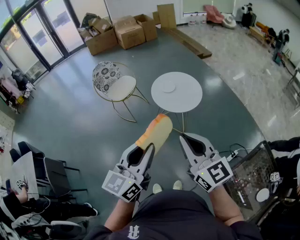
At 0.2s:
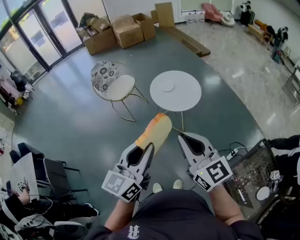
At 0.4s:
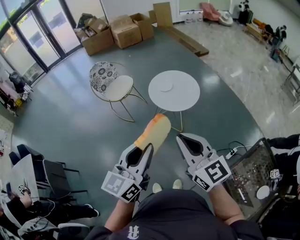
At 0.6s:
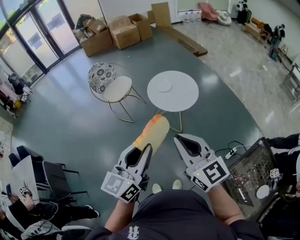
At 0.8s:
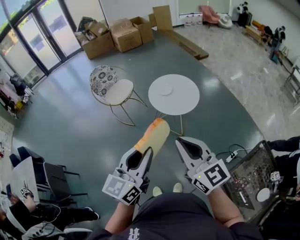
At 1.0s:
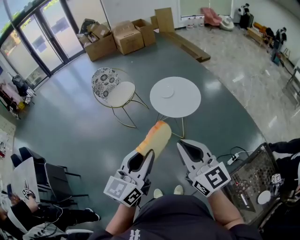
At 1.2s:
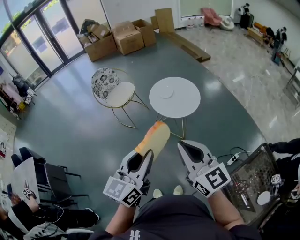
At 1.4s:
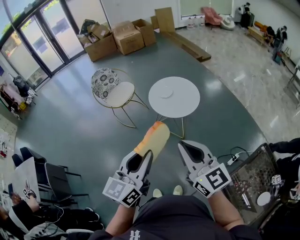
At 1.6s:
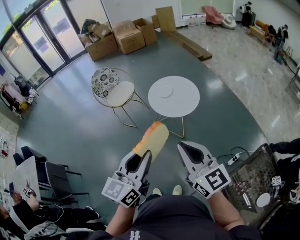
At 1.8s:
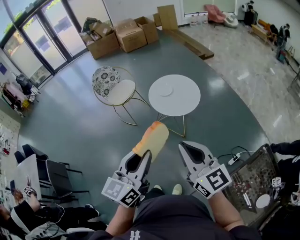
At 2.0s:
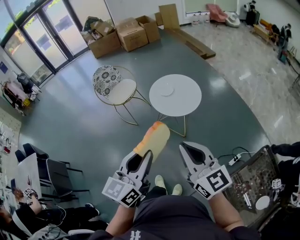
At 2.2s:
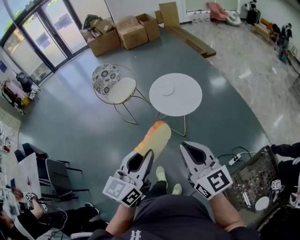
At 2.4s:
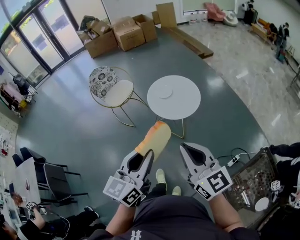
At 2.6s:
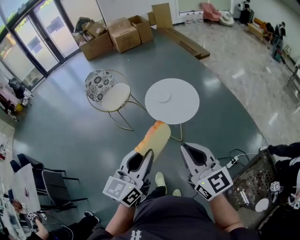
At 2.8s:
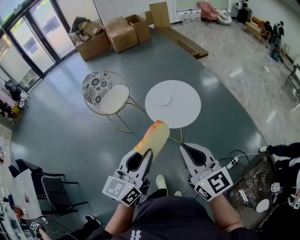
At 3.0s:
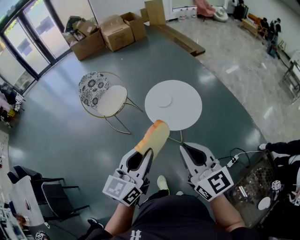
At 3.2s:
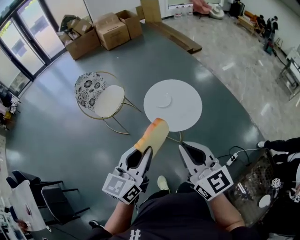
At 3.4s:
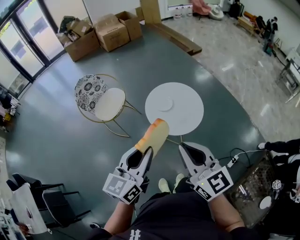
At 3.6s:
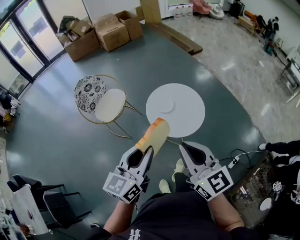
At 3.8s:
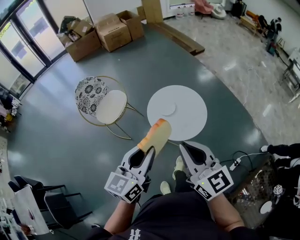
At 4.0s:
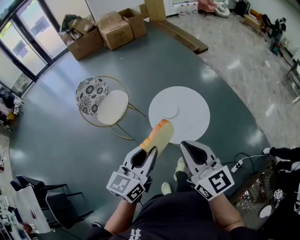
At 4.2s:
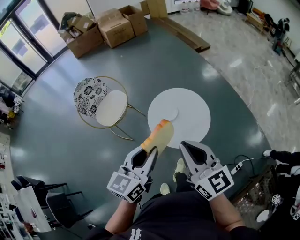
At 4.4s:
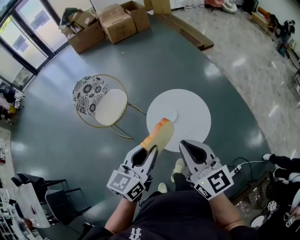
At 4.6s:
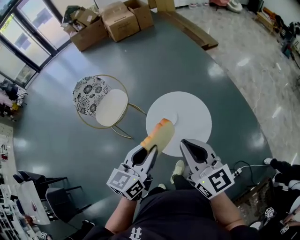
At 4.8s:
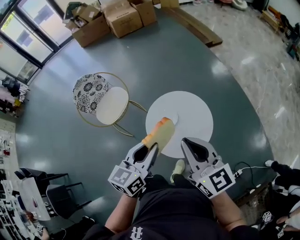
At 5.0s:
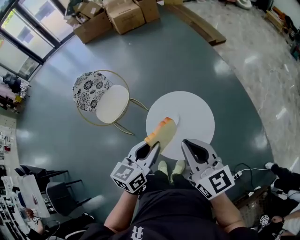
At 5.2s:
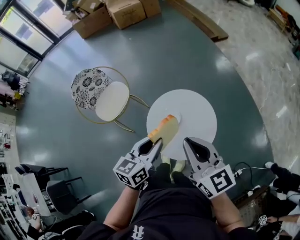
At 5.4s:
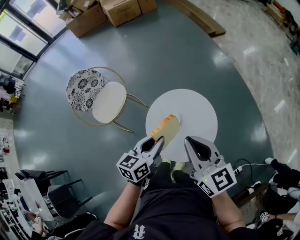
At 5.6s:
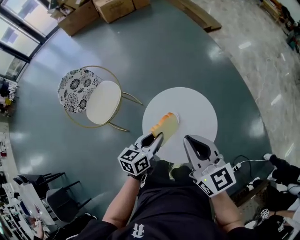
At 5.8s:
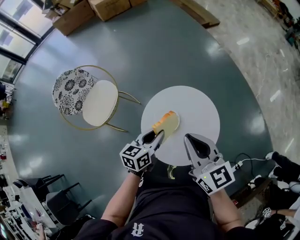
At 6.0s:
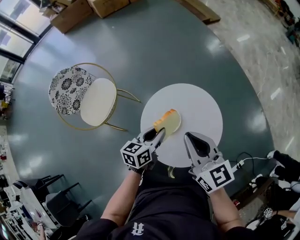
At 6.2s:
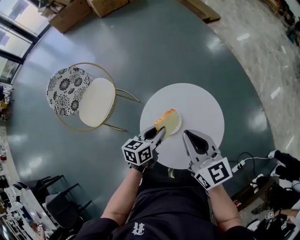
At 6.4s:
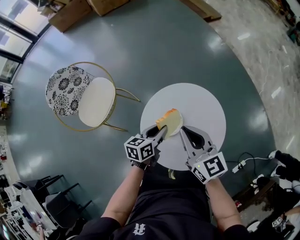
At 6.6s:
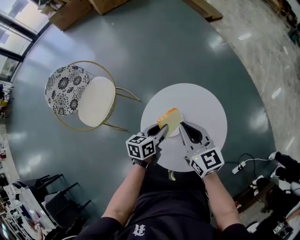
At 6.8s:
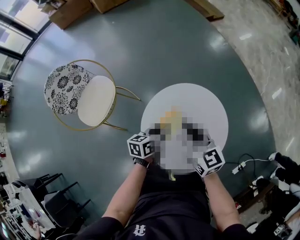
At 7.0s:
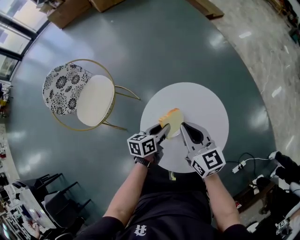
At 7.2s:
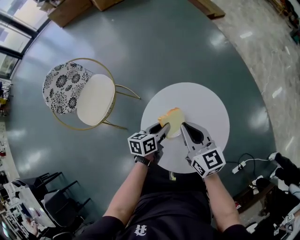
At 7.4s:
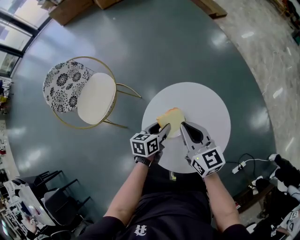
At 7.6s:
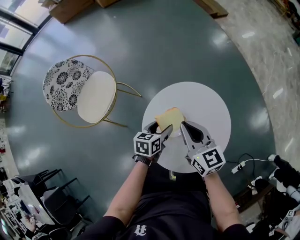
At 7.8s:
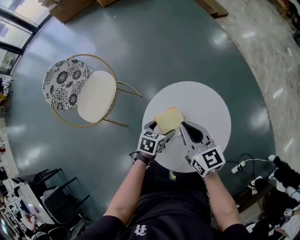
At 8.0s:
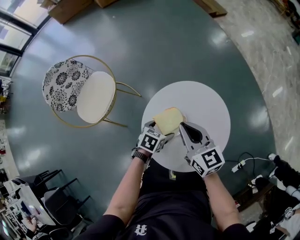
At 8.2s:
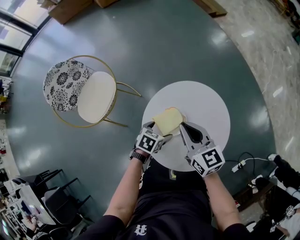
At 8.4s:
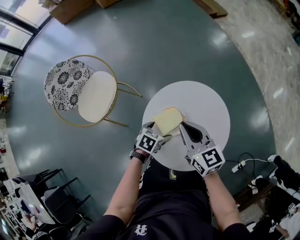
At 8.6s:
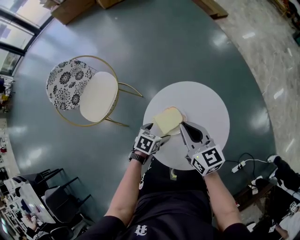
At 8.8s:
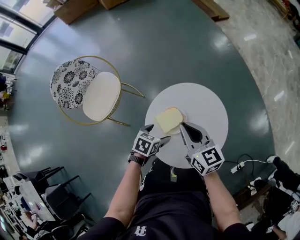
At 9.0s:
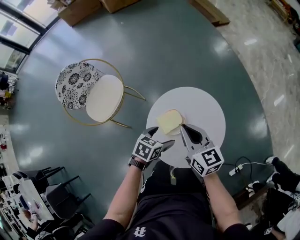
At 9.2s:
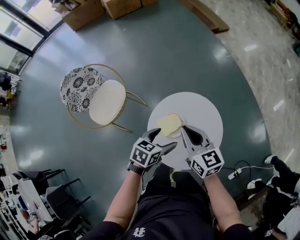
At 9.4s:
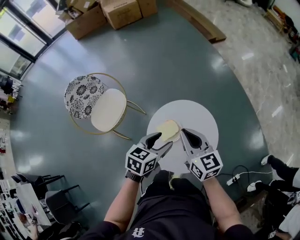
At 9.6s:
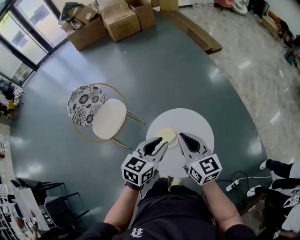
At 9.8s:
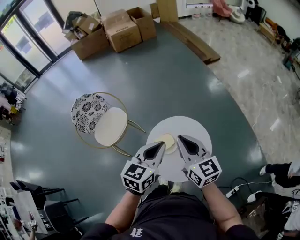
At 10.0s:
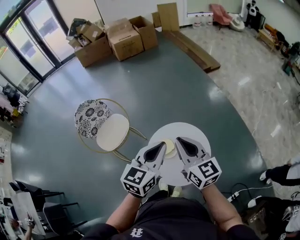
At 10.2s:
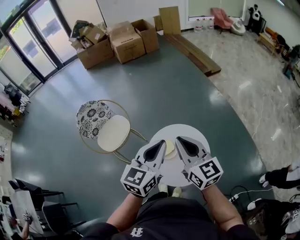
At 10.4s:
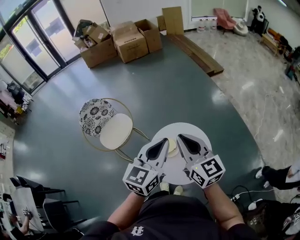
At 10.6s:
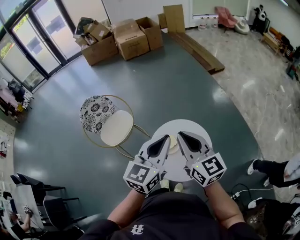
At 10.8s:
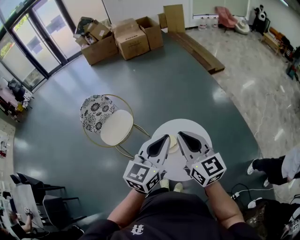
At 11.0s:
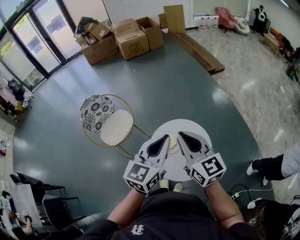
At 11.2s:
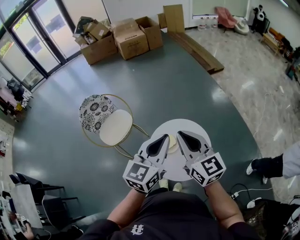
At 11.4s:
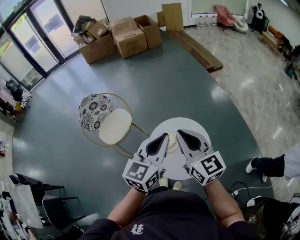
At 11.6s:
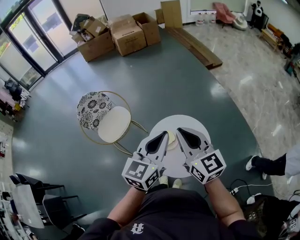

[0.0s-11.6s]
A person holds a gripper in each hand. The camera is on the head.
0.0s to 1.4s: The grippers stay close to where they were, moving slightly.
1.4s to 2.8s: Both grippers travel together forward, some 15 cm.
2.8s to 4.4s: Both grippers travel together forward, some 25 cm.
4.4s to 5.8s: The left gripper moves downward and forward, approximately 35 cm, and swivels roughly 20 degrees; the right gripper moves forward and downward, approximately 25 cm.
5.8s to 7.2s: The left gripper goes some 15 cm downward, while the right gripper goes approximately 20 cm downward and forward.
7.2s to 8.8s: The left gripper shifts about 5 cm backward, swivels roughly 40 degrees, and opens up.
8.8s to 10.2s: The left gripper moves upward, roughly 50 cm, tilts its fingers approximately 50 degrees upward, and closes up; the right gripper moves upward, approximately 30 cm.
10.2s to 11.6s: The grippers move only a little.

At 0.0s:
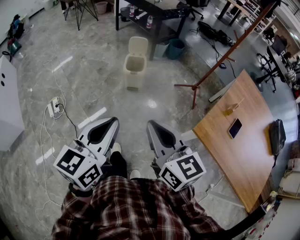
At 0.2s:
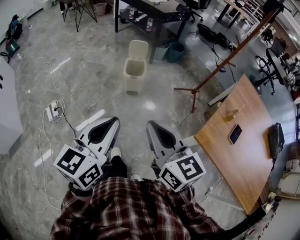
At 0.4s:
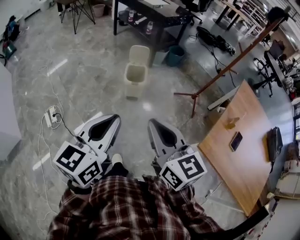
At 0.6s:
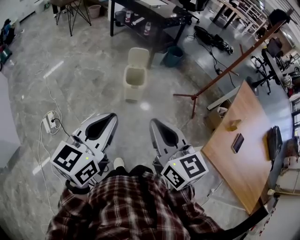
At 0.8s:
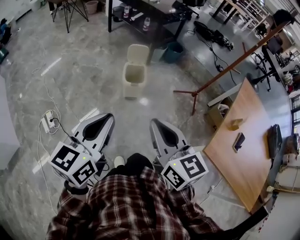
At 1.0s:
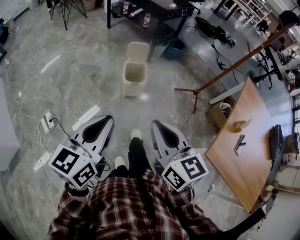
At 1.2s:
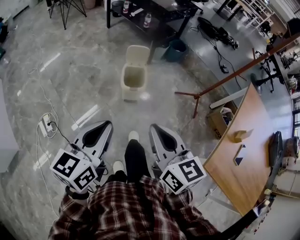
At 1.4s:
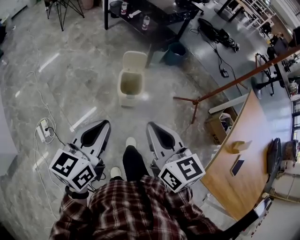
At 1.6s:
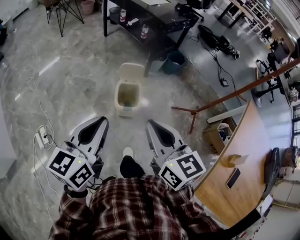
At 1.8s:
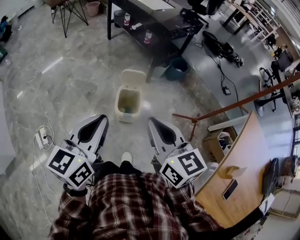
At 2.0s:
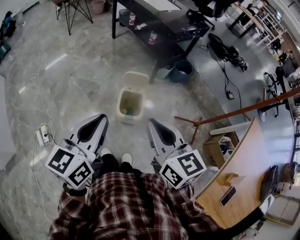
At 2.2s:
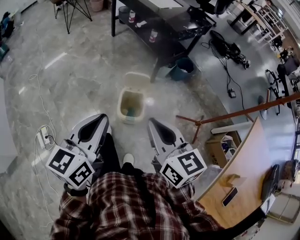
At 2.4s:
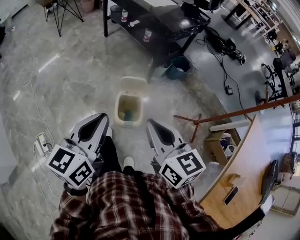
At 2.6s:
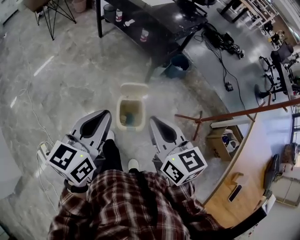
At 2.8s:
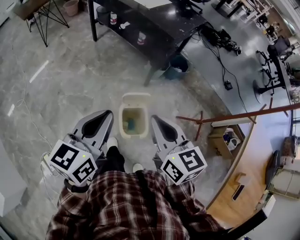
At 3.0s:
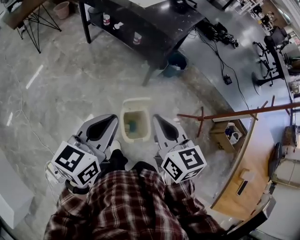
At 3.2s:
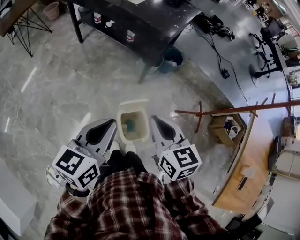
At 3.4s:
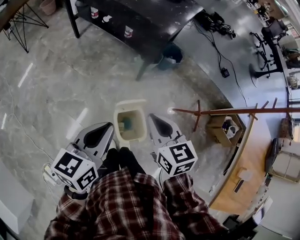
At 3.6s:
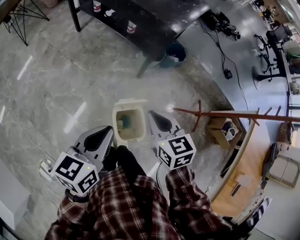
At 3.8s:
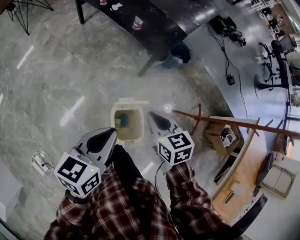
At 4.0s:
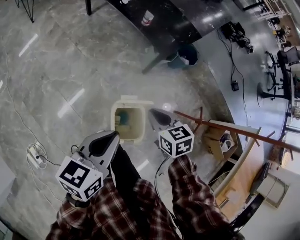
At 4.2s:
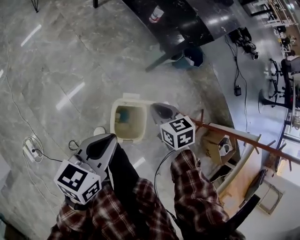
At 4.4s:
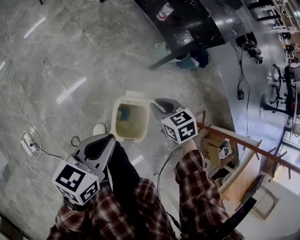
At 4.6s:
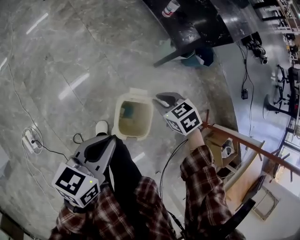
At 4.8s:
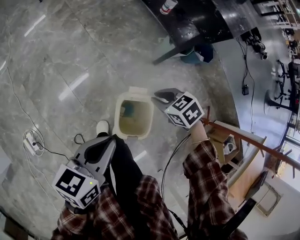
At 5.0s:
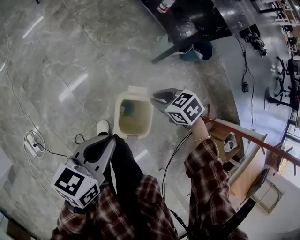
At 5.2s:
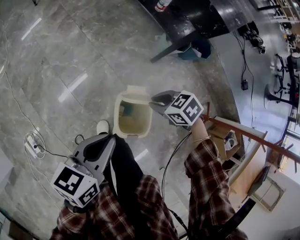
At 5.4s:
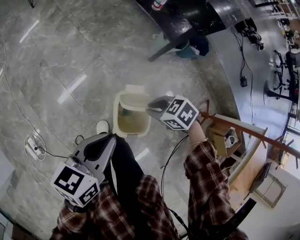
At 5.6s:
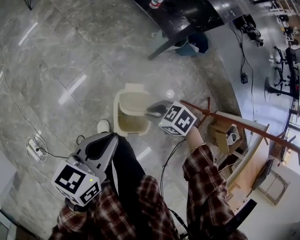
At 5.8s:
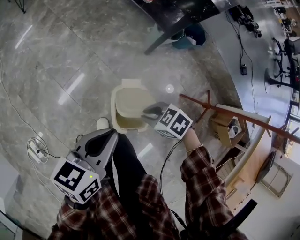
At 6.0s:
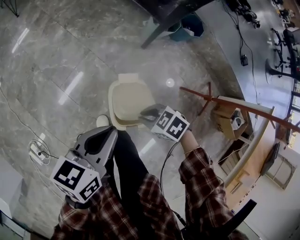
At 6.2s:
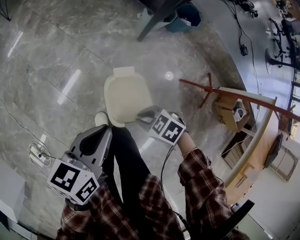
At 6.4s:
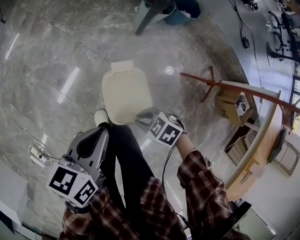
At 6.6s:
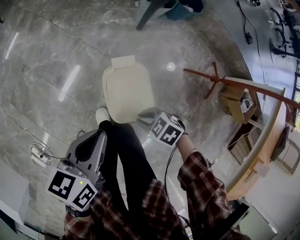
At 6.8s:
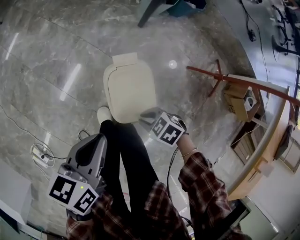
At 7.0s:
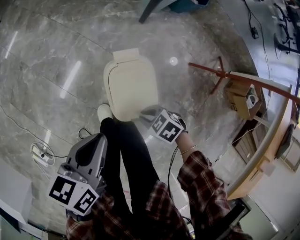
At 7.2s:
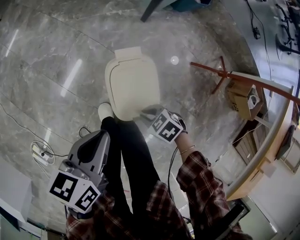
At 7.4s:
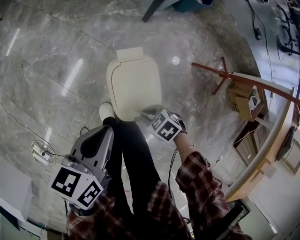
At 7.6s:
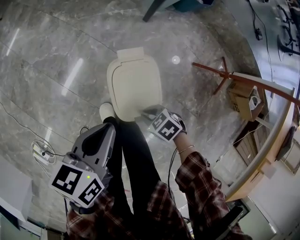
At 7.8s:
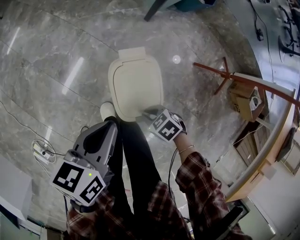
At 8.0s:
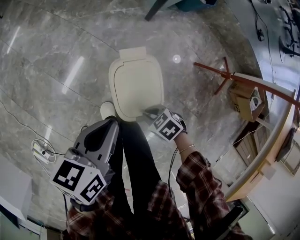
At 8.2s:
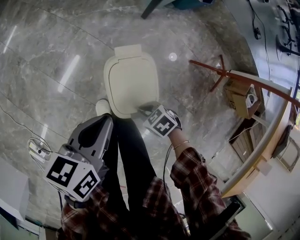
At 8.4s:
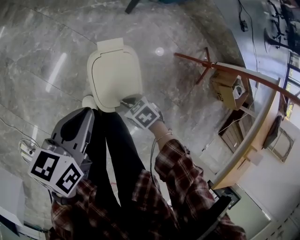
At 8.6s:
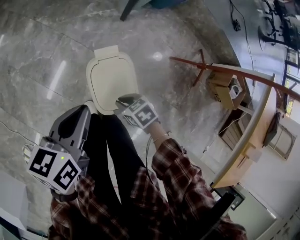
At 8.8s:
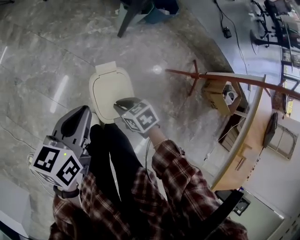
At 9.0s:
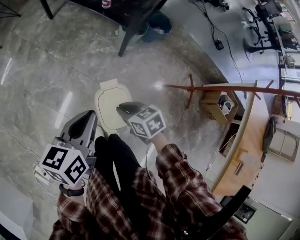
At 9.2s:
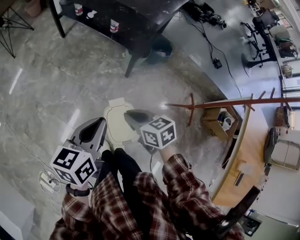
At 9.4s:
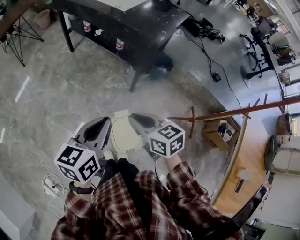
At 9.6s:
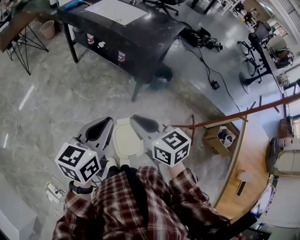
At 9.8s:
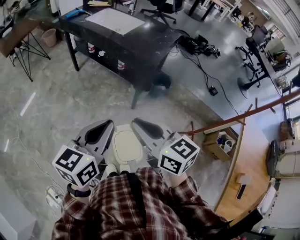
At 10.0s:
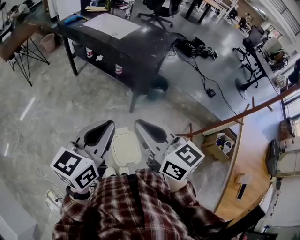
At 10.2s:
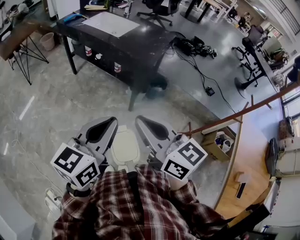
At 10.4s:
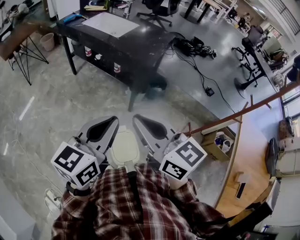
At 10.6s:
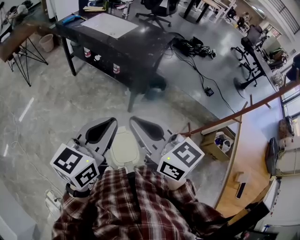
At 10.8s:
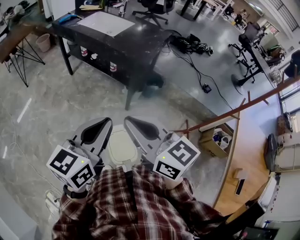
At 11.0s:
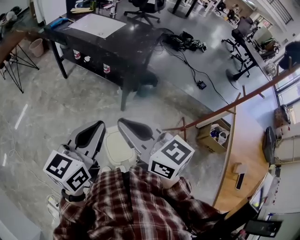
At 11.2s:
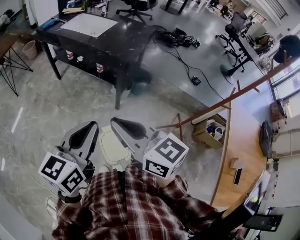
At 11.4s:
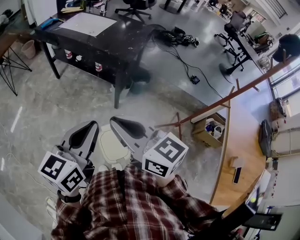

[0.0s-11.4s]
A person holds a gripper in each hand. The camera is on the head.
0.0s to 1.4s: The two grippers go about 35 cm forward.
1.4s to 2.8s: The grippers both shift forward by roughly 40 cm.
2.8s to 4.2s: The right gripper travels downward and forward by roughly 35 cm, and points its fingers about 30 degrees further downward. The left gripper shifts roughly 20 cm downward and forward, and turns by about 20 degrees.
4.2s to 5.6s: The right gripper shifts by about 10 cm, and swivels approximately 40 degrees.
5.6s to 7.2s: The two grippers go about 15 cm downward.
7.2s to 8.6s: The left gripper ends up roughly 5 cm from where it was. The right gripper moves about 5 cm, and swivels roughly 20 degrees.
8.6s to 10.0s: The left gripper goes roughly 40 cm upward, and turns by roughly 40 degrees, while the right gripper moves upward, roughly 60 cm, and angles its fingers upward, by roughly 50 degrees.
10.0s to 11.4s: There are only small adjustments of the grippers.

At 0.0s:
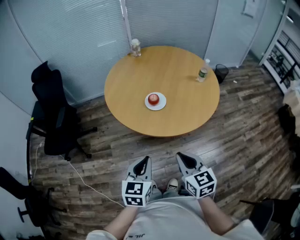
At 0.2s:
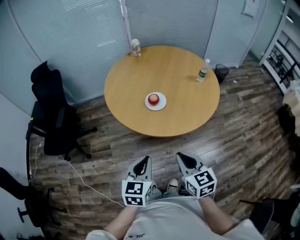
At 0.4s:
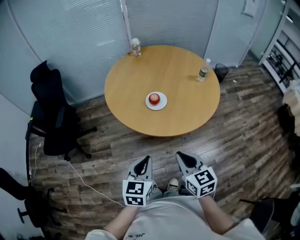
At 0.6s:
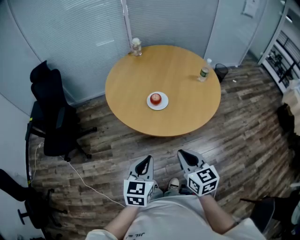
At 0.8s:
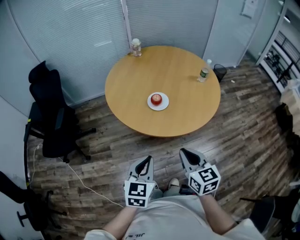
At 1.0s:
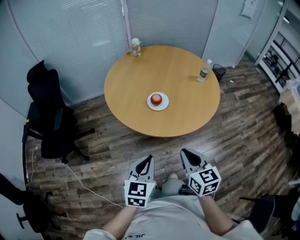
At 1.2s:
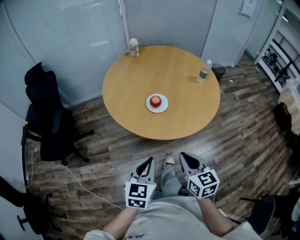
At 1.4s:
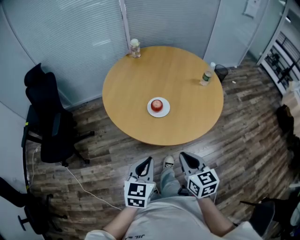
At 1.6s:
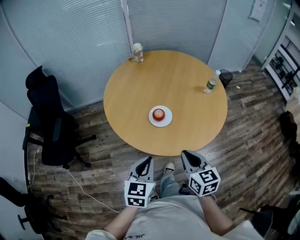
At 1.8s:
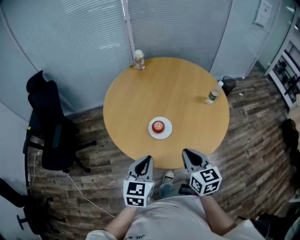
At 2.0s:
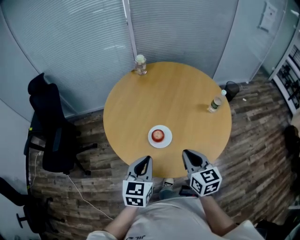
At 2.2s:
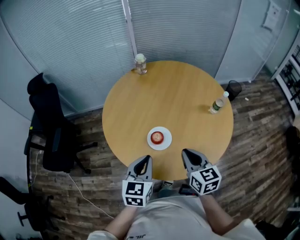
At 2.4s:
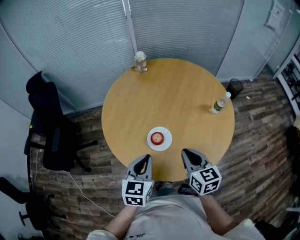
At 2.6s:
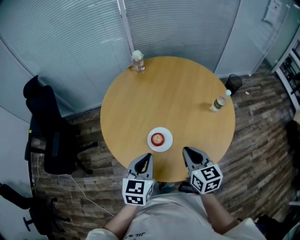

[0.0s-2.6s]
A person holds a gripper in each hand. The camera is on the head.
0.0s to 1.2s: The grippers move only a little.
1.2s to 2.6s: The grippers both shift forward by roughly 25 cm.
